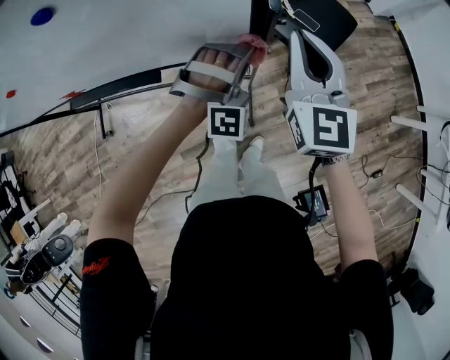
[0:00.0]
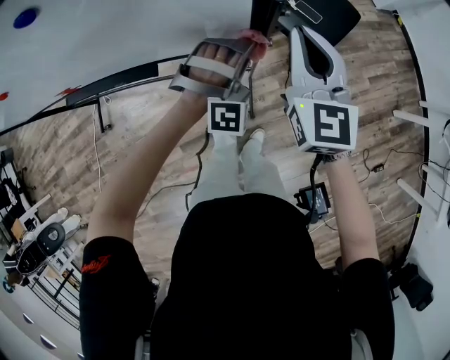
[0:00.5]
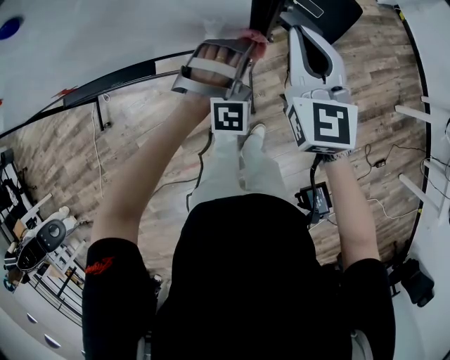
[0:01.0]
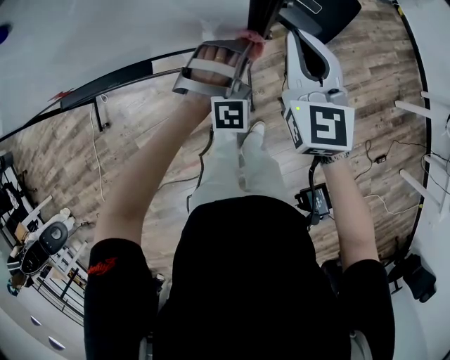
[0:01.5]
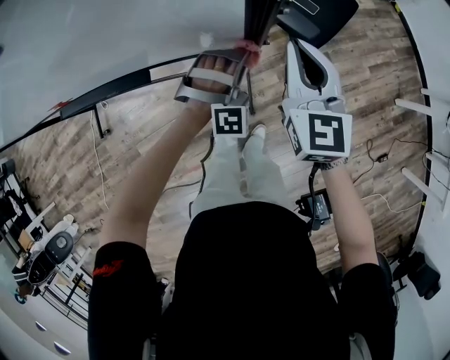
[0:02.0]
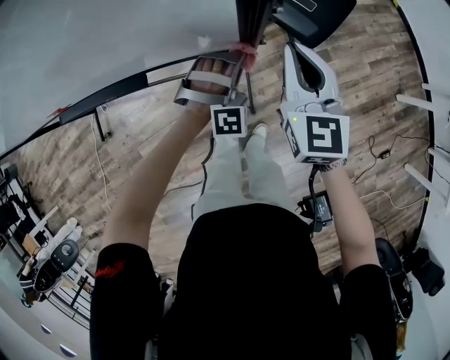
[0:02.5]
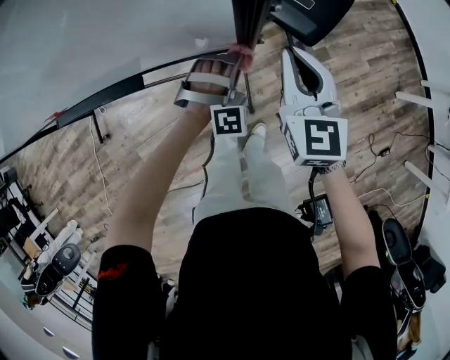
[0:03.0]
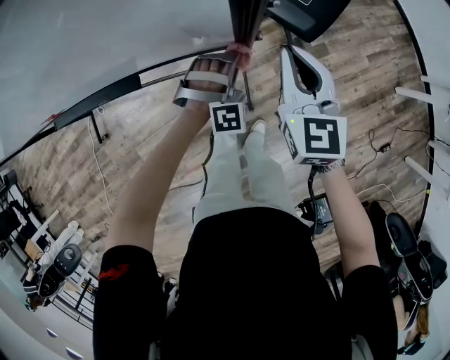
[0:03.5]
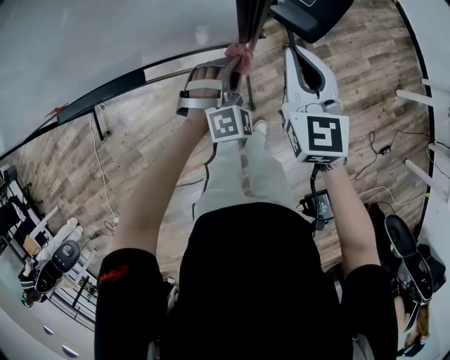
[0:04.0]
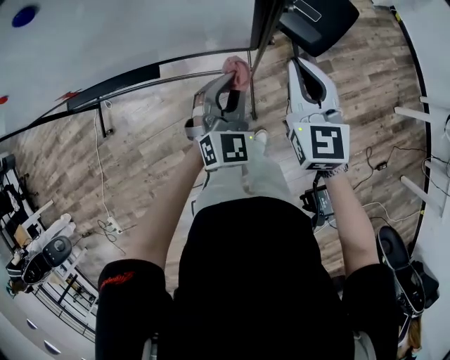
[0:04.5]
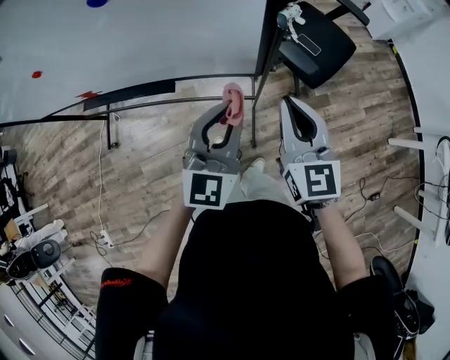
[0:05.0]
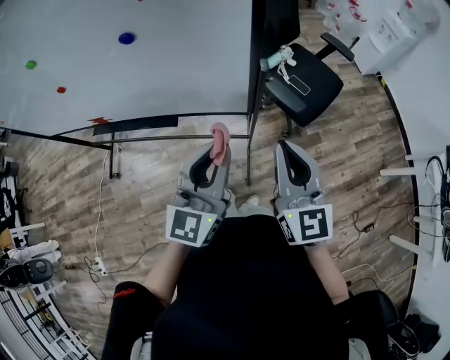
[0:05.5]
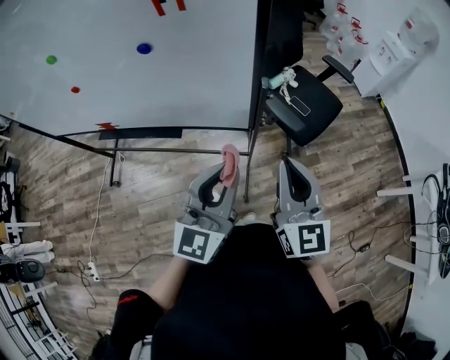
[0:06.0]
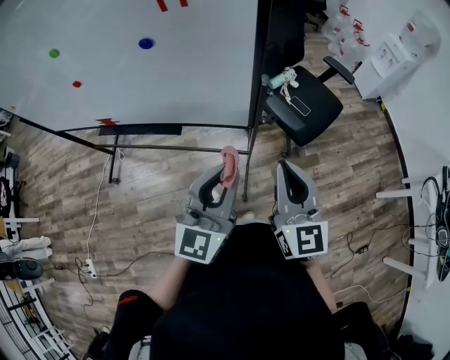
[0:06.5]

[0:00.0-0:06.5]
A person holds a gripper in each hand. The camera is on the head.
0:00.0 to 0:02.0: The right gripper goes about 10 cm downward.
0:04.5 to 0:06.5: The right gripper shifts roughly 15 cm upward.

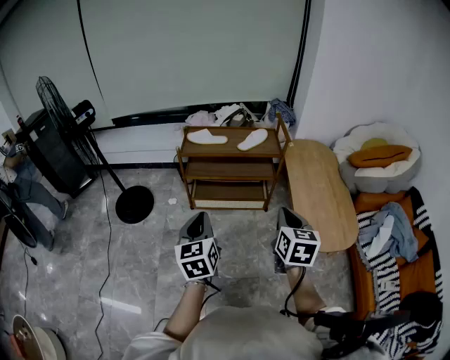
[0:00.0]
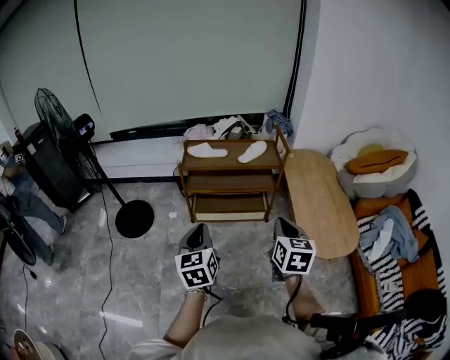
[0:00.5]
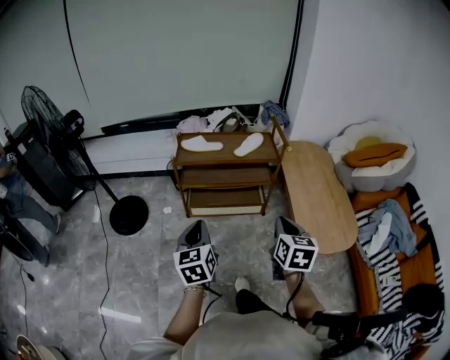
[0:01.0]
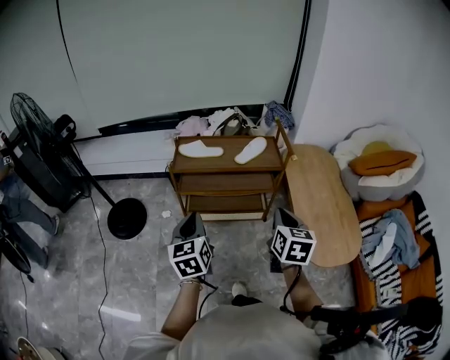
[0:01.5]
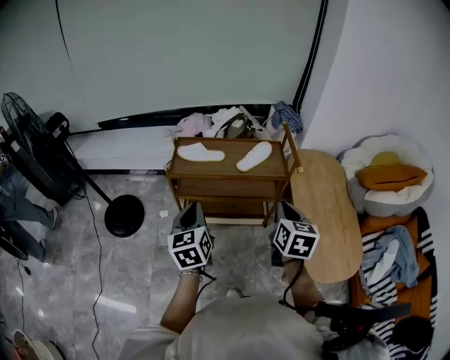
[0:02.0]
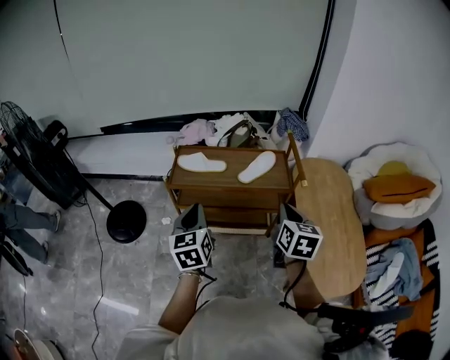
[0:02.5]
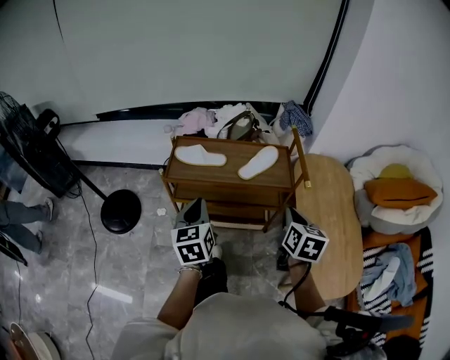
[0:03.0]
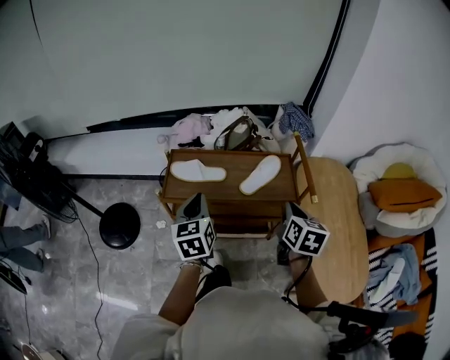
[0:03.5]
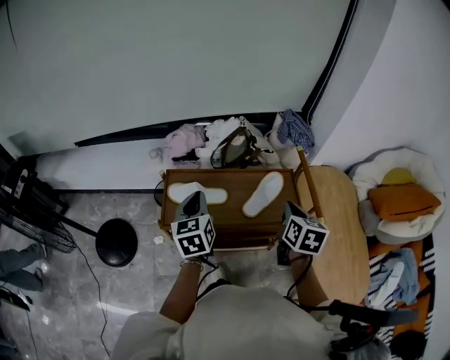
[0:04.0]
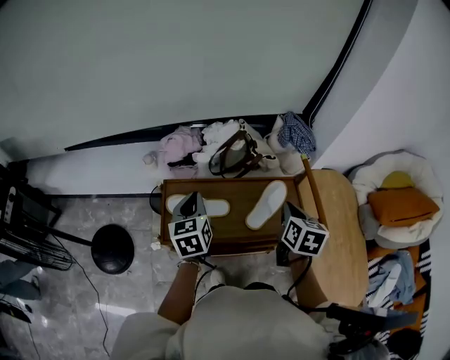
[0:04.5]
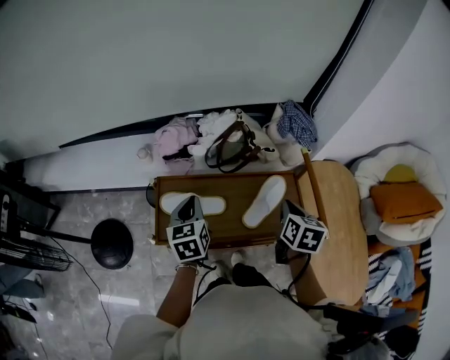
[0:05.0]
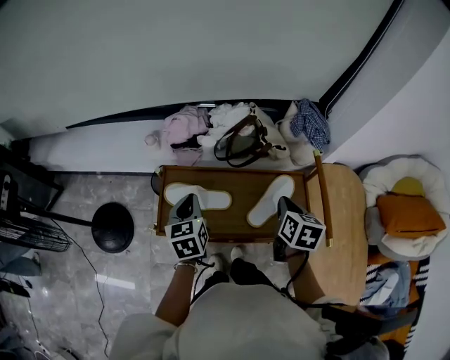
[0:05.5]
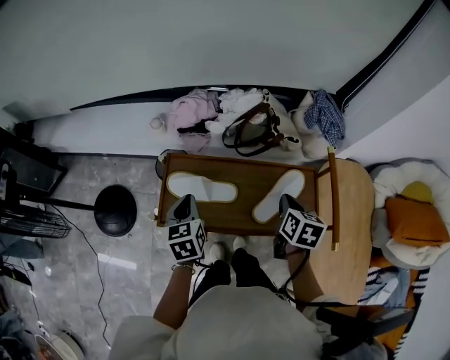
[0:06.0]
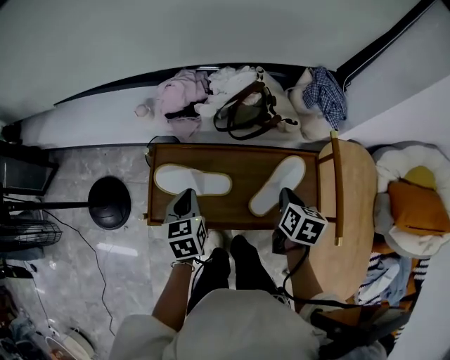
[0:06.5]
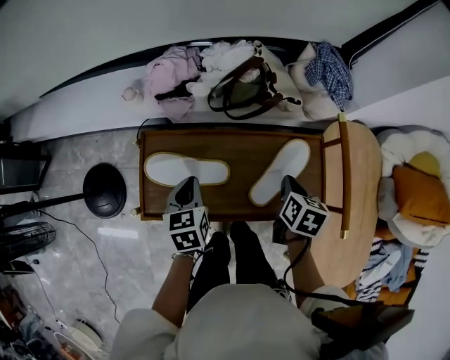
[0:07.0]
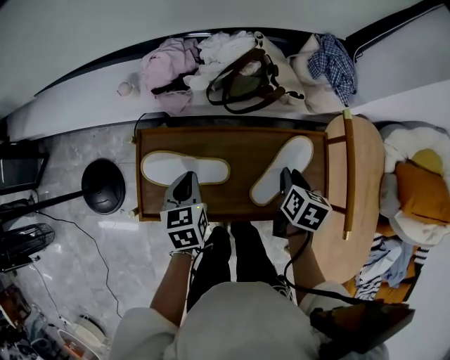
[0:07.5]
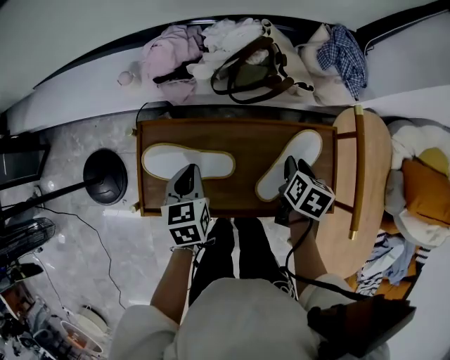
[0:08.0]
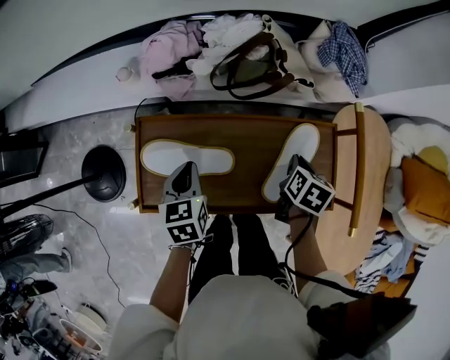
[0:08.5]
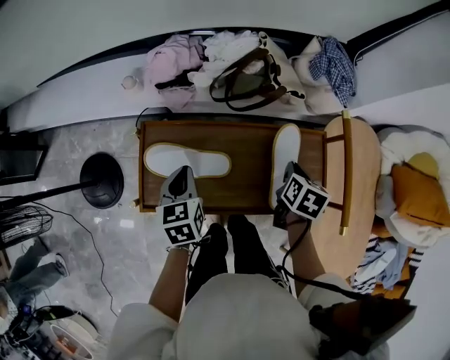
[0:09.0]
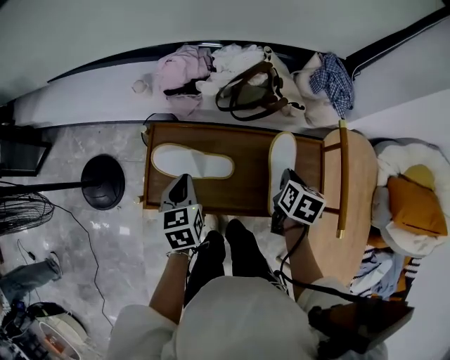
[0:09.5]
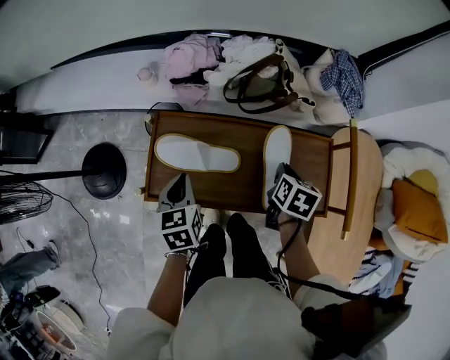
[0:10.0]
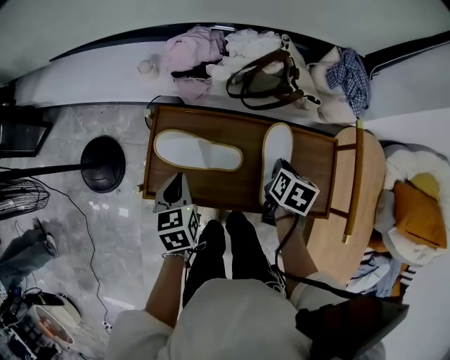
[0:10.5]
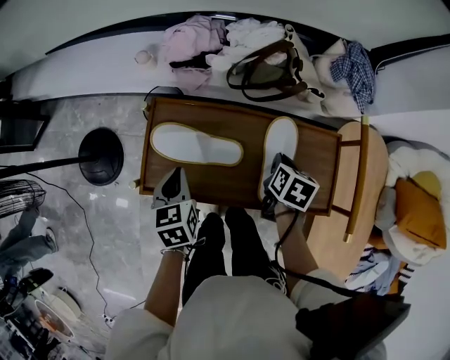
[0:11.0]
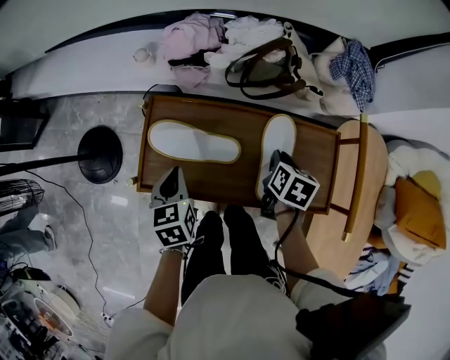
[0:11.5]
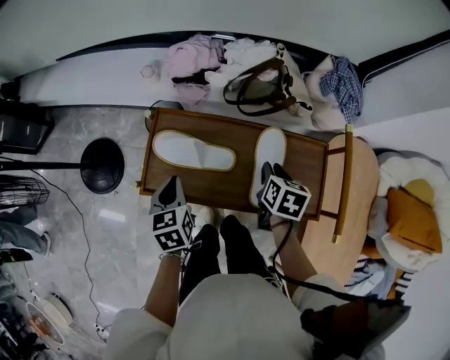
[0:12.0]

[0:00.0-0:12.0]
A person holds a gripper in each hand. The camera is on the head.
0:00.0 to 0:02.0: The grippers both shift forward by some 20 cm.
0:02.0 to 0:04.0: Both grippers travel together forward, some 30 cm.
0:04.0 to 0:06.0: The right gripper is displaced forward and downward by some 15 cm. Meanwhile the left gripper shifts about 10 cm downward and to the left.
0:06.0 to 0:08.0: The two grippers go approximately 10 cm downward. The right gripper opens its fingers.
0:08.0 to 0:10.0: The left gripper shifts roughly 5 cm backward, while the right gripper moves about 5 cm, and closes its fingers.
0:10.0 to 0:12.0: The grippers stay close to where they were, moving slightly.

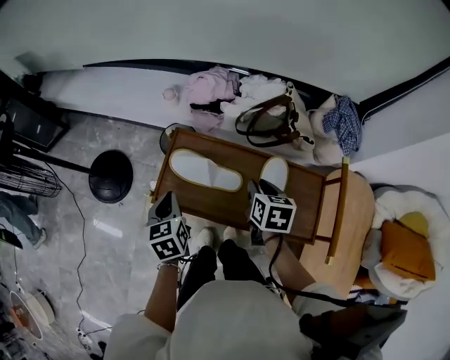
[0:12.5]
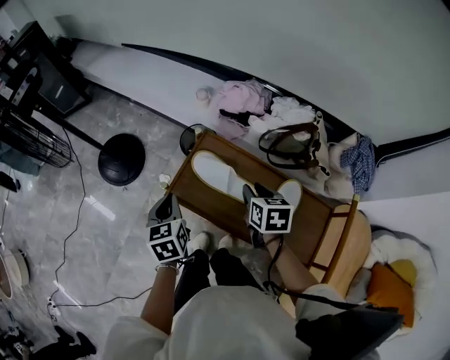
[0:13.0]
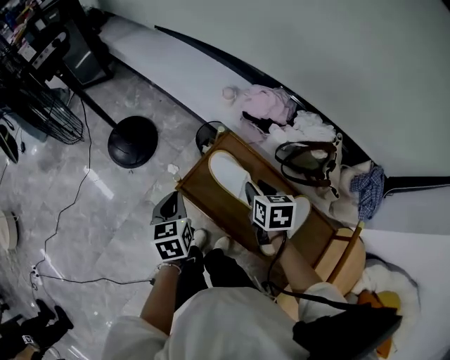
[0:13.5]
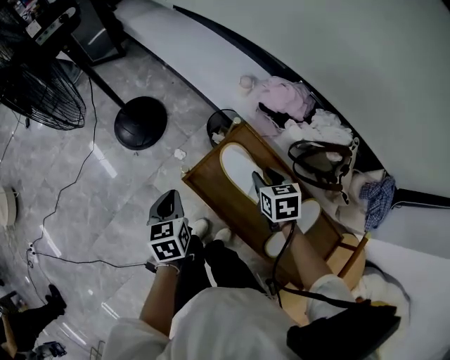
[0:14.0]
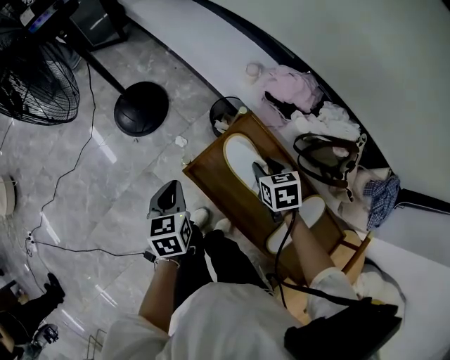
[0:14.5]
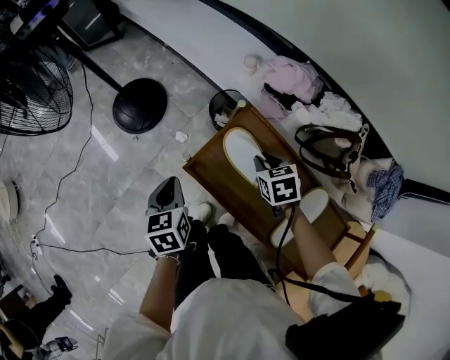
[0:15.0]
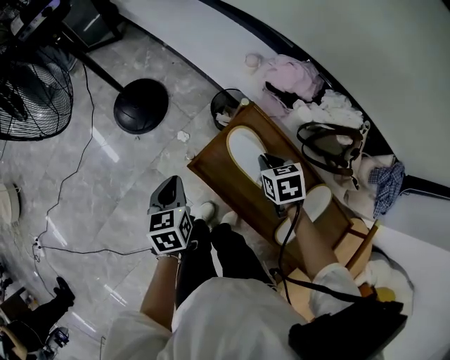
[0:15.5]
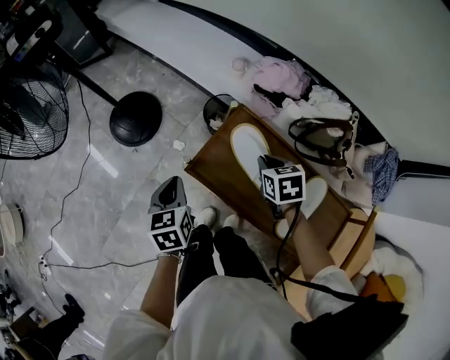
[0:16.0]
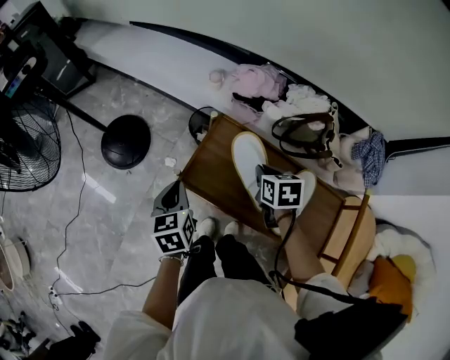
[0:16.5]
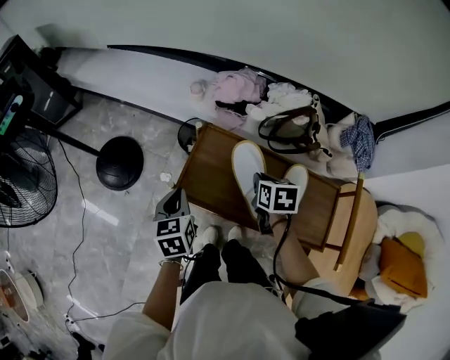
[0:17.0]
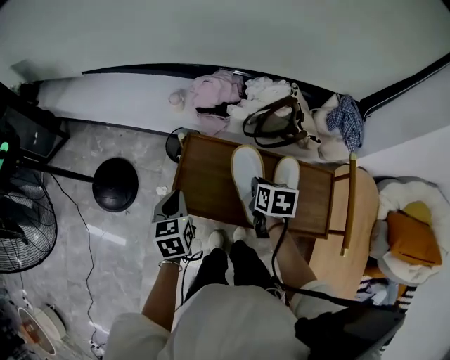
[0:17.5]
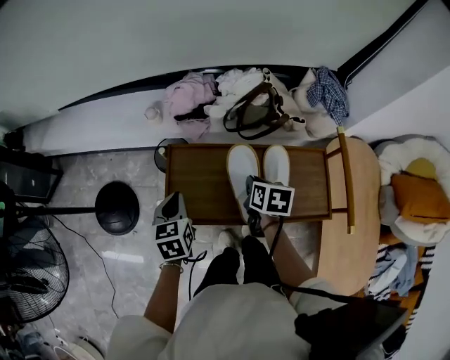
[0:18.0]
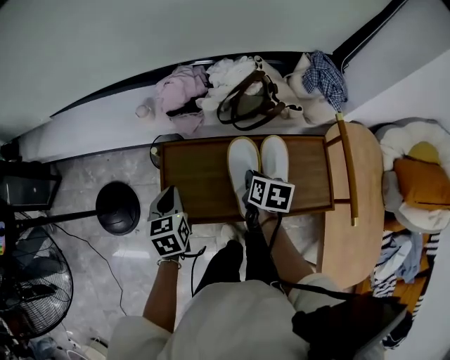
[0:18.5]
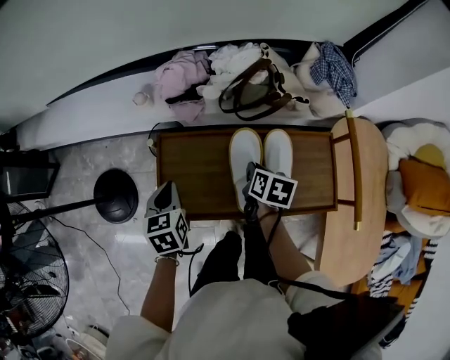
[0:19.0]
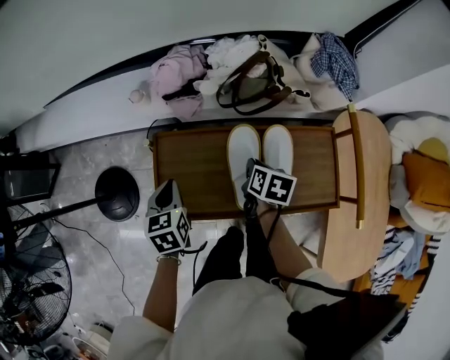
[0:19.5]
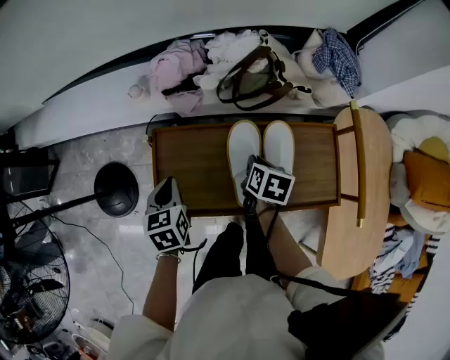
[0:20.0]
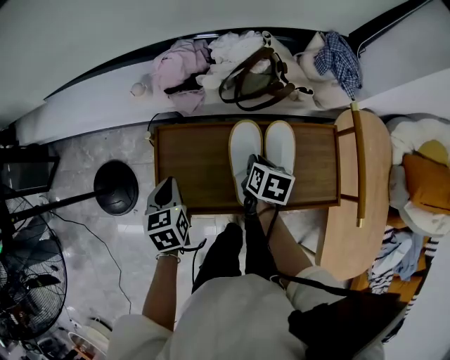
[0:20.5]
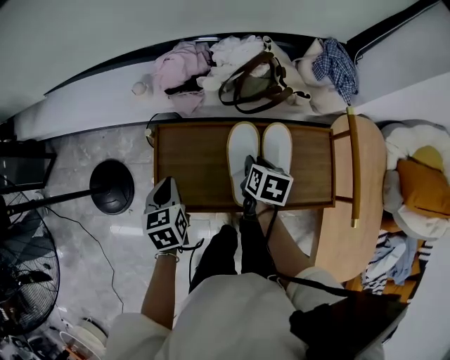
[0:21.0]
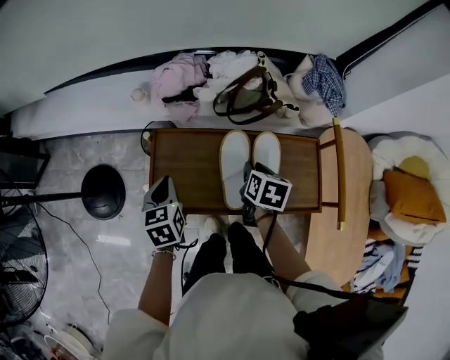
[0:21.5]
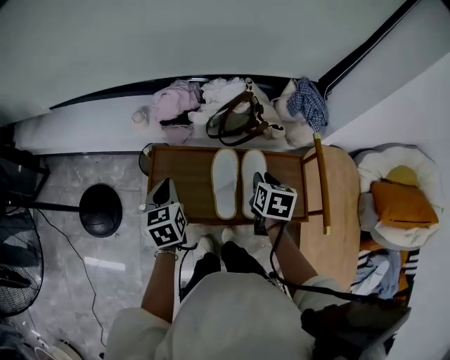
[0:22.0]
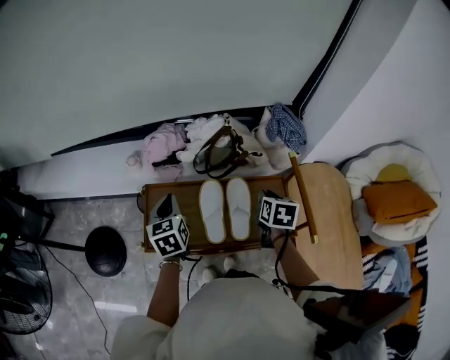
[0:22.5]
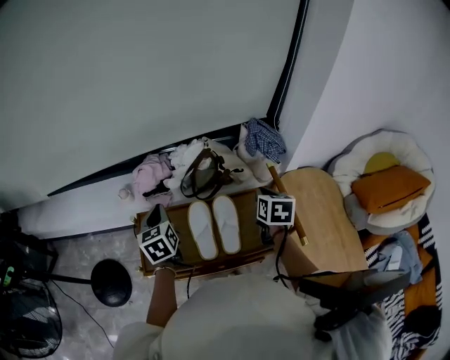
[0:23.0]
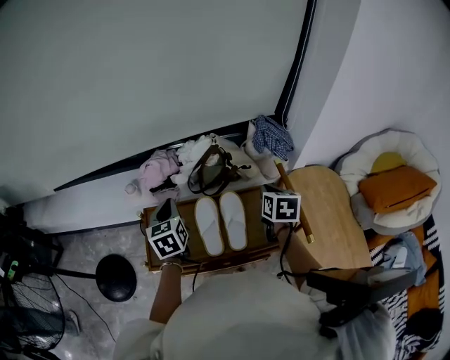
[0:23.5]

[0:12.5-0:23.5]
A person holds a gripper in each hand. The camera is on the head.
0:12.5 to 0:14.5: The right gripper moves roughly 20 cm, and rotates around the line of its fingers by approximately 40 degrees, counterclockwise from behind. The left gripper moves some 10 cm, and swivels approximately 20 degrees.
0:14.5 to 0:16.0: The right gripper closes.
0:16.0 to 0:18.0: The left gripper ends up roughly 15 cm from where it was, and swivels about 40 degrees. The right gripper moves about 15 cm, and twists some 50 degrees clockwise, seen from behind.
0:18.0 to 0:20.0: The right gripper heads downward, covering some 5 cm.
0:20.0 to 0:21.5: The right gripper shifts approximately 5 cm upward.
0:21.5 to 0:23.5: The right gripper goes some 20 cm to the right and upward, and closes up. The left gripper moves upward, to the right and forward, some 20 cm.
